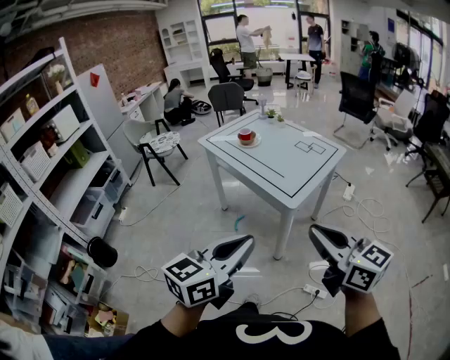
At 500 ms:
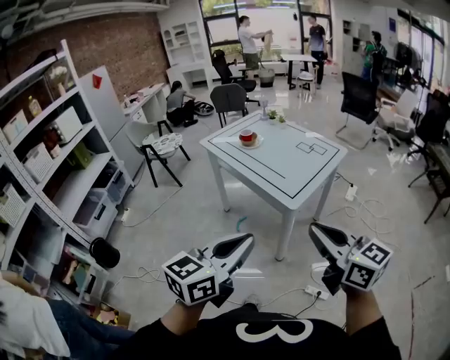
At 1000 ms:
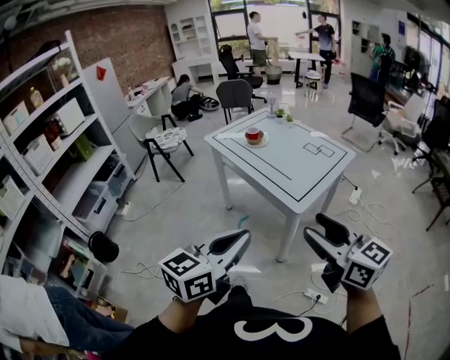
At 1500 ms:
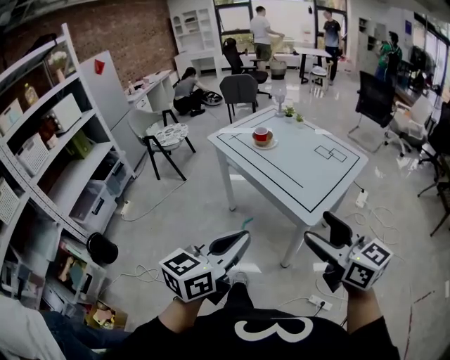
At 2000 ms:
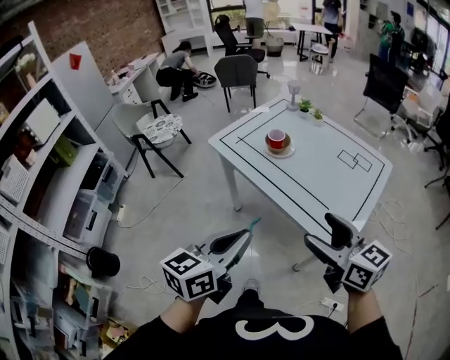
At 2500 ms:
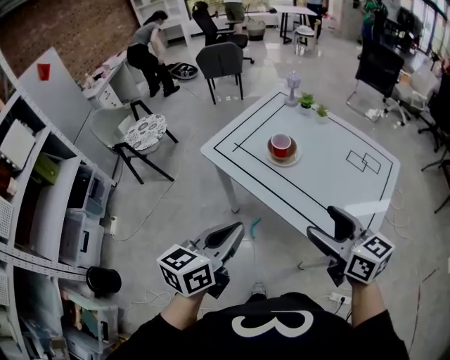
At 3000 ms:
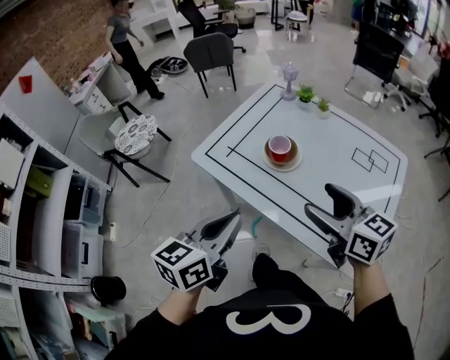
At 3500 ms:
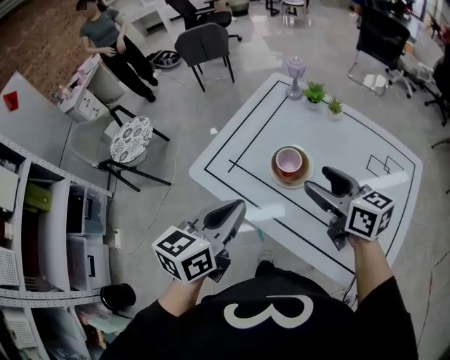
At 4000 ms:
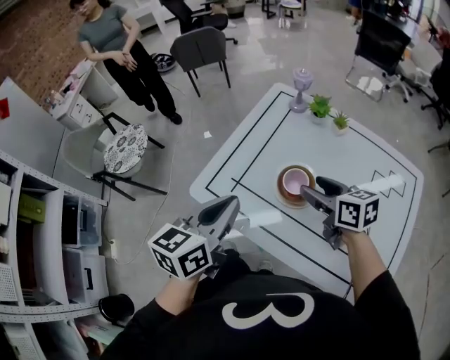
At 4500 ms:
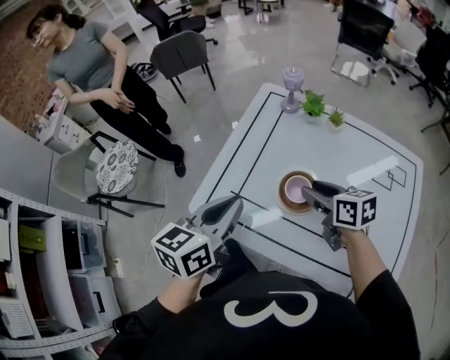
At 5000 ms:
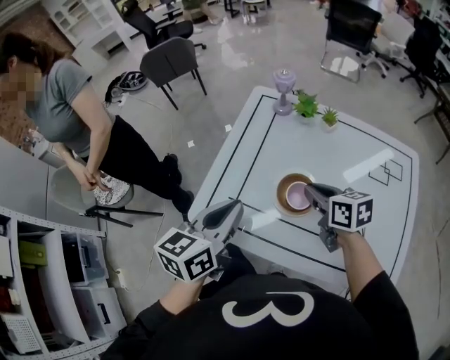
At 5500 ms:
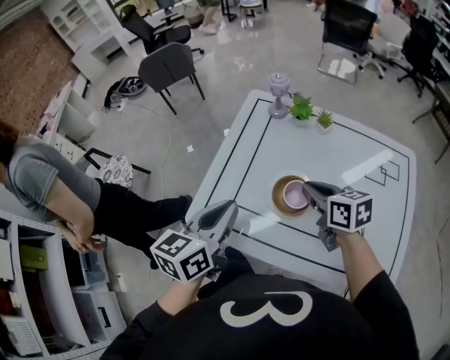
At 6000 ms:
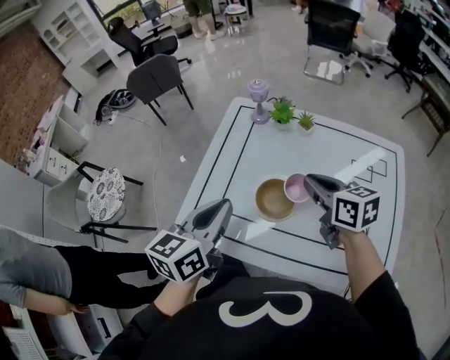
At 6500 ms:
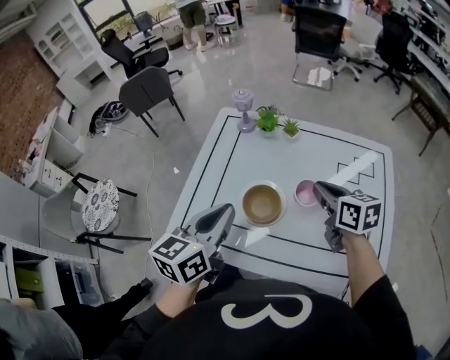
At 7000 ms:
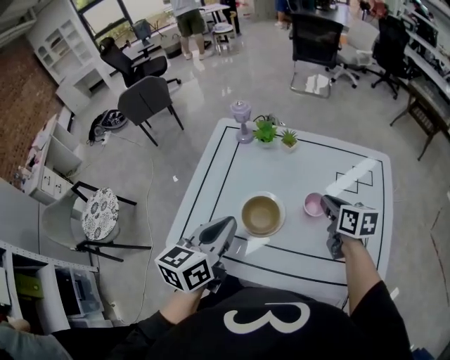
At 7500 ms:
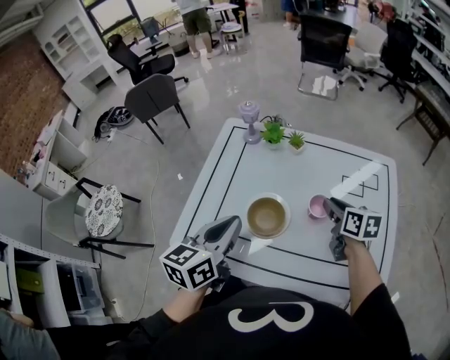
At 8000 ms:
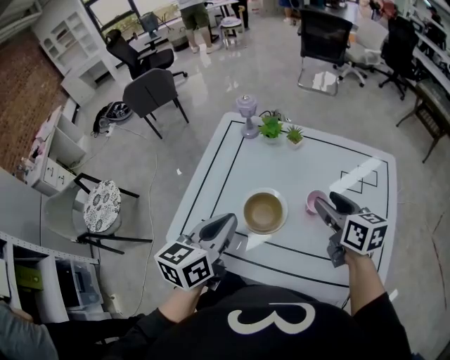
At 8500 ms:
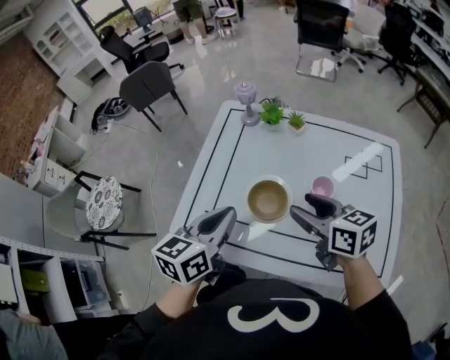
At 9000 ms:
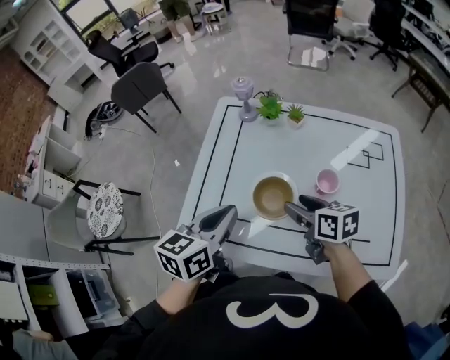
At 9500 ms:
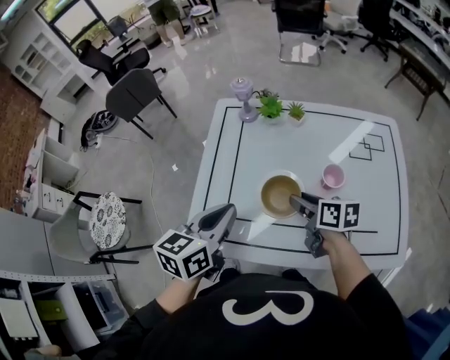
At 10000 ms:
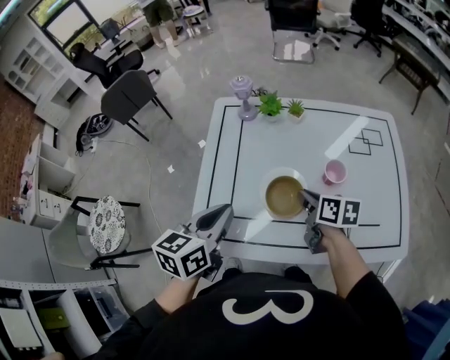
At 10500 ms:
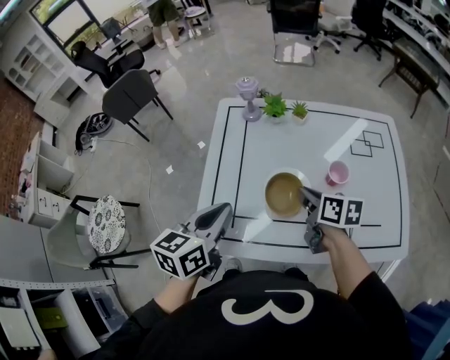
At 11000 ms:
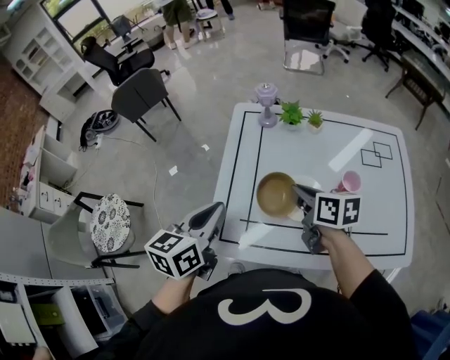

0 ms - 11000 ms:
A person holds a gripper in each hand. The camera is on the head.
0 ms - 2000 ms: The left gripper shifts about 35 cm forward and to the left; the right gripper goes some 35 cm forward, and opens.
2000 ms - 3500 ms: The grippers both shift forward by some 35 cm.
3500 ms - 5500 ms: The right gripper goes approximately 10 cm forward and downward, changes its angle by about 20 degrees, and closes, while the left gripper travels forward by about 15 cm.
5500 ms - 7500 ms: The left gripper heads to the right, covering approximately 5 cm, while the right gripper travels to the right by some 15 cm, and swivels roughly 20 degrees.
7500 ms - 9000 ms: The right gripper travels to the left and backward by roughly 15 cm, and opens up.
9000 ms - 11000 ms: The two grippers go about 10 cm to the left. The right gripper closes up.

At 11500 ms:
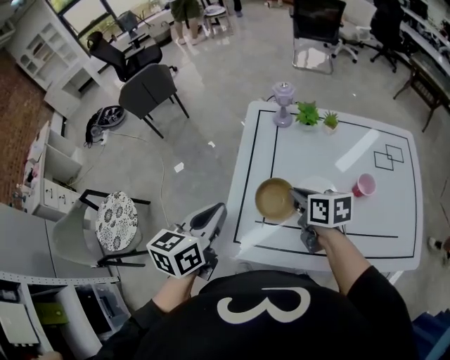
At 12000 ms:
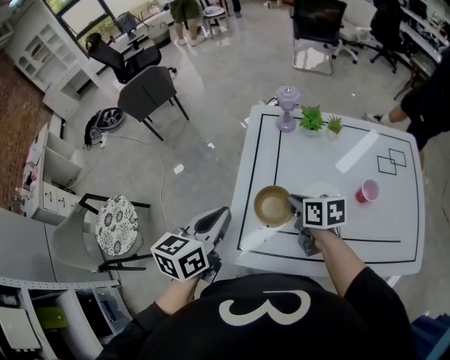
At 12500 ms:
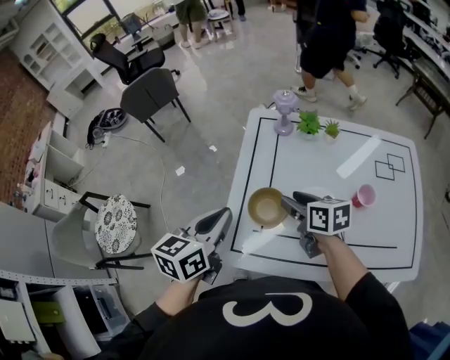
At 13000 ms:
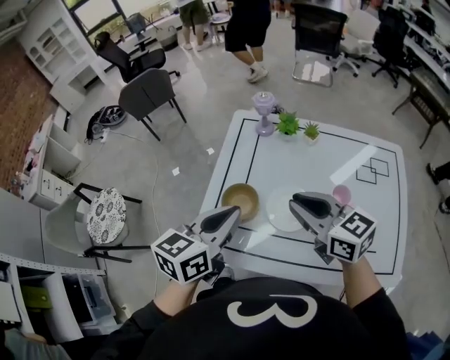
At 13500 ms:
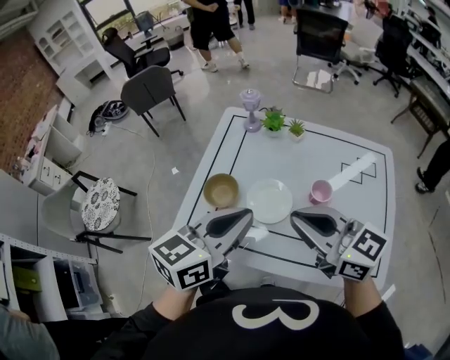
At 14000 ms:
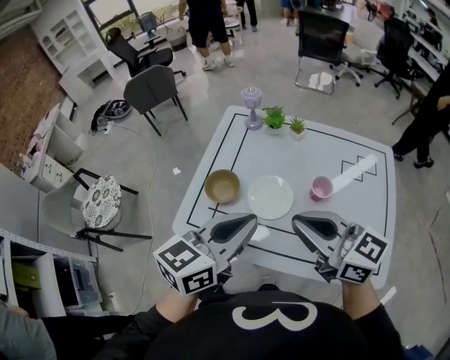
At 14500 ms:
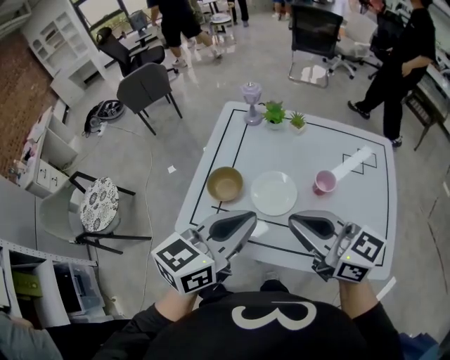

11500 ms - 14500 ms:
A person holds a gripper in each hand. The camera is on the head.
11500 ms - 13000 ms: The left gripper is displaced to the right by some 15 cm. Meanwhile the right gripper goes roughly 15 cm upward, to the right and backward, and swivels approximately 40 degrees.
13000 ms - 14500 ms: The left gripper travels backward and to the right by some 10 cm. The right gripper heads backward, covering approximately 10 cm.

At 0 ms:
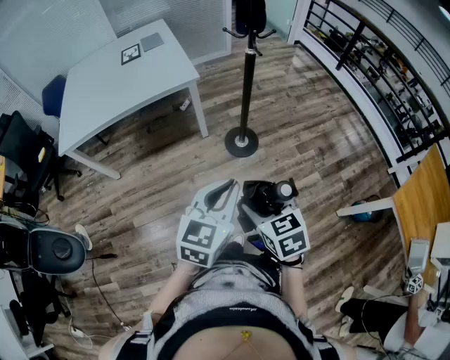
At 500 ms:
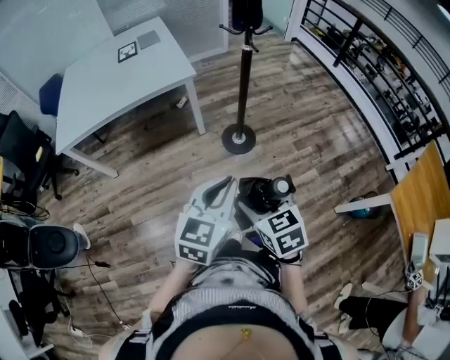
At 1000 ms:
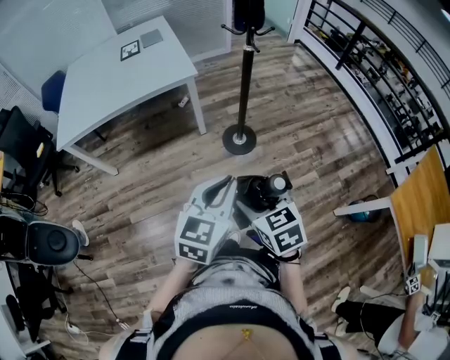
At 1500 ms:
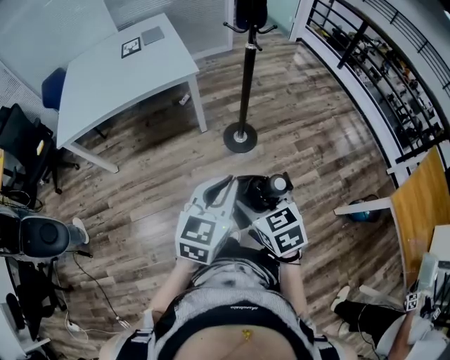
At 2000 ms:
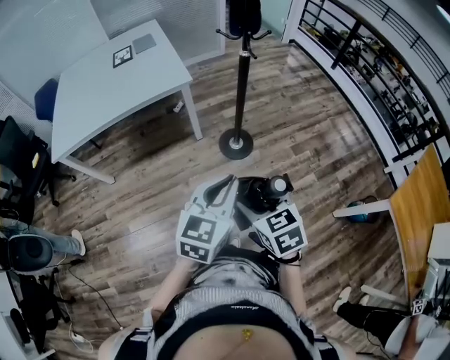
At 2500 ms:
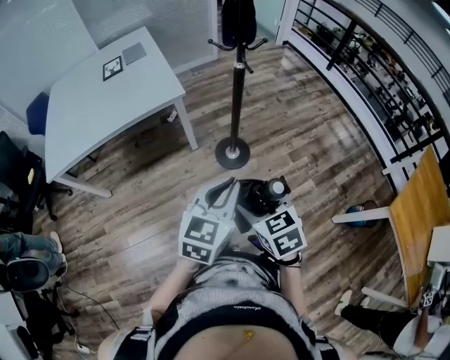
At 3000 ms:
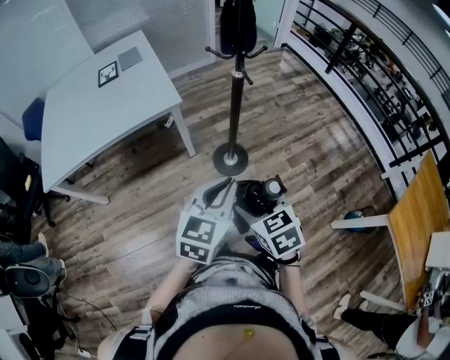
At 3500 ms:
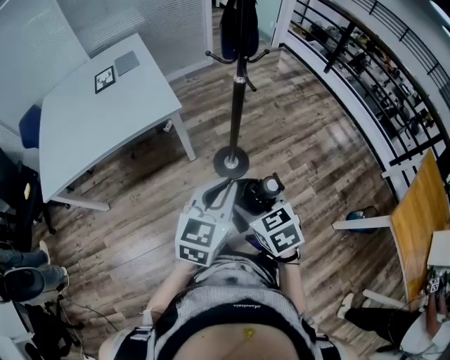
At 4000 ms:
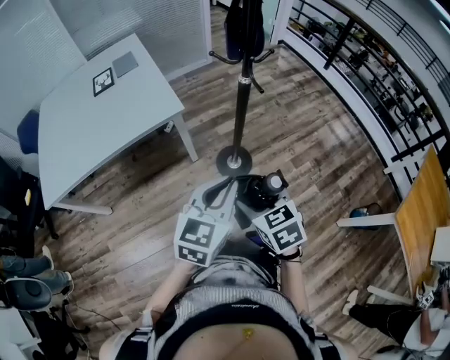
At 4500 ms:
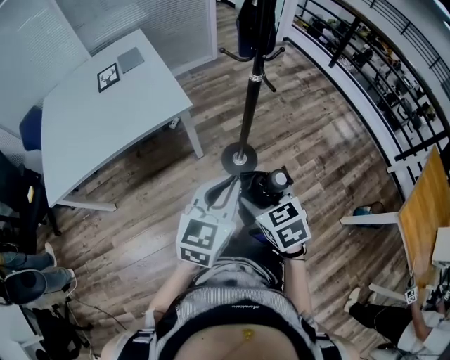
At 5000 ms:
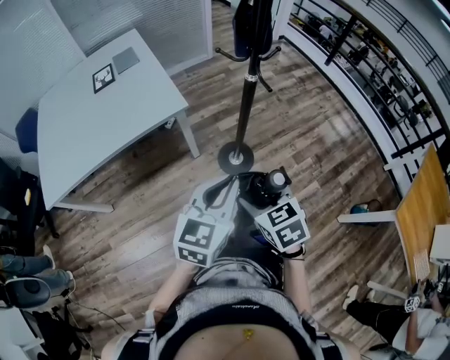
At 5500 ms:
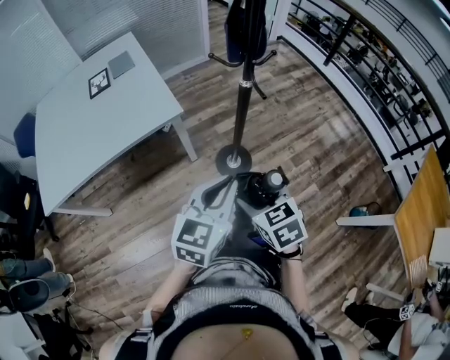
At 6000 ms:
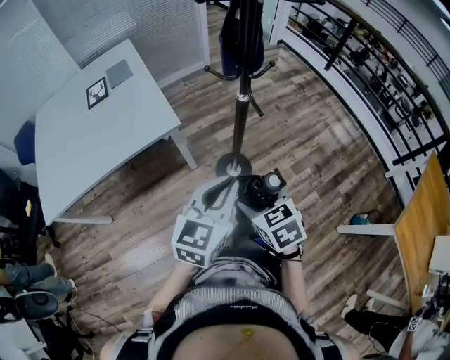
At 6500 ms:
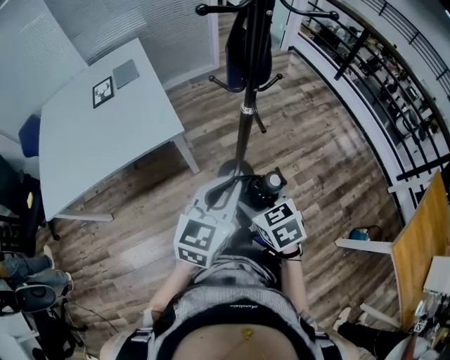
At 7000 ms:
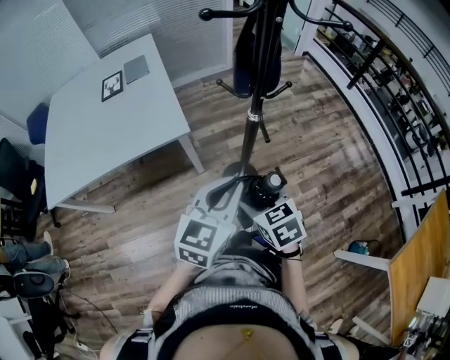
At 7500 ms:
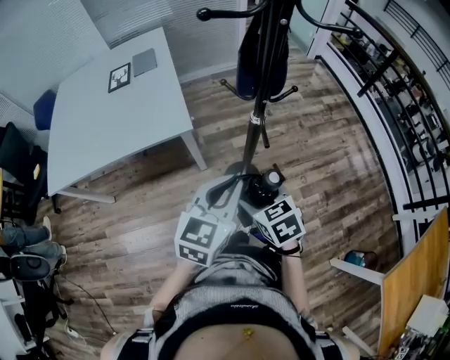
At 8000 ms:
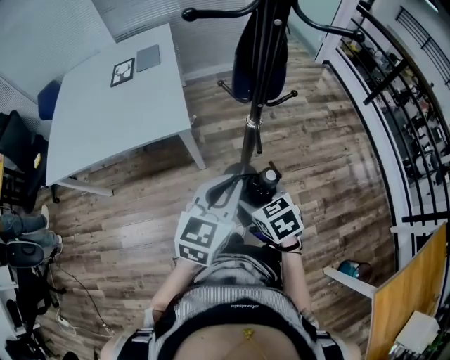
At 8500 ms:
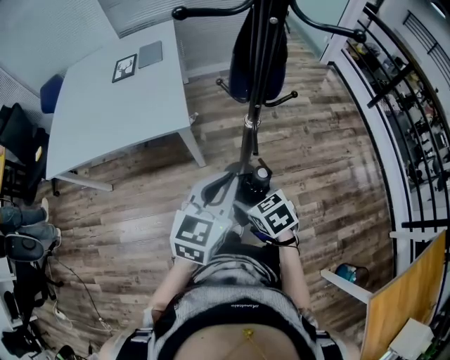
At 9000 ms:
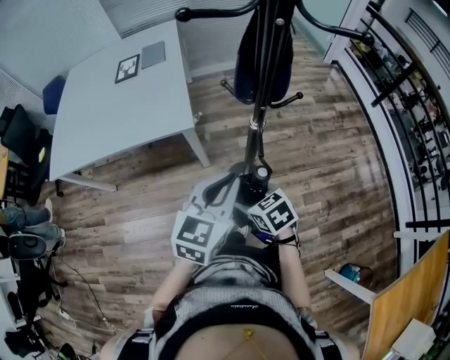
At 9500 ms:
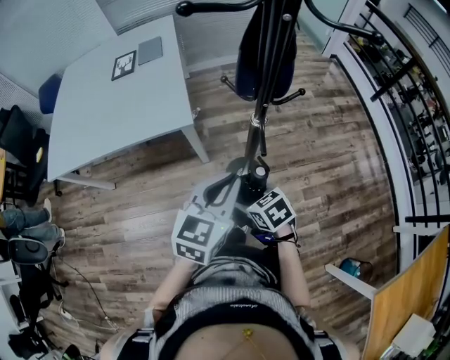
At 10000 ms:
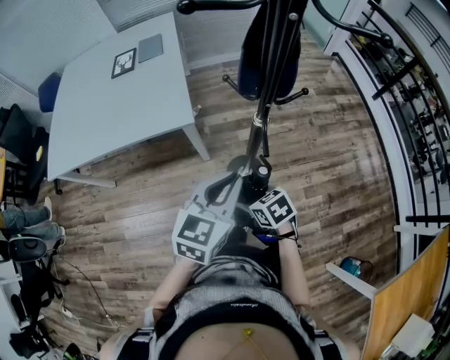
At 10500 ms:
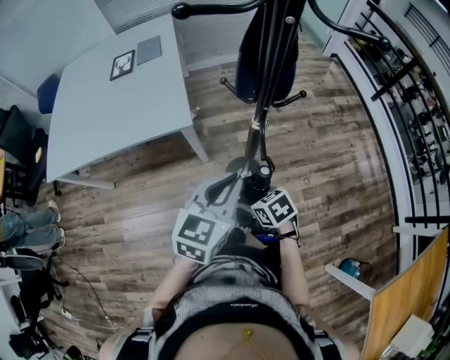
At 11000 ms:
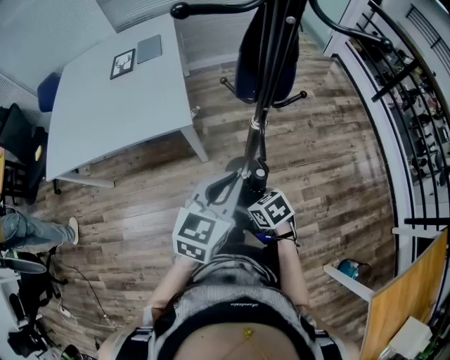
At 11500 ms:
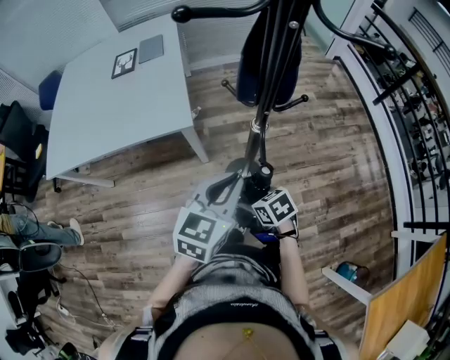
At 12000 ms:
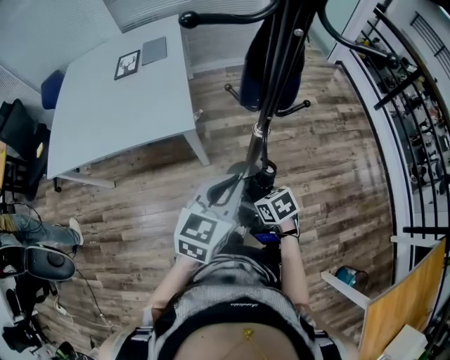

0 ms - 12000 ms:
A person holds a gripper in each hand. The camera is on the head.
0 ms - 2000 ms: The grippers move only a little.
2000 ms - 4000 ms: The two grippers go roughly 20 cm forward.
4000 ms - 6000 ms: The grippers both shift forward by about 10 cm.
6000 ms - 8000 ms: Both grippers travel together forward and to the right, about 10 cm.
8000 ms - 10000 ms: The right gripper travels downward by about 10 cm.
10000 ms - 12000 ms: The grippers stay close to where they were, moving slightly.

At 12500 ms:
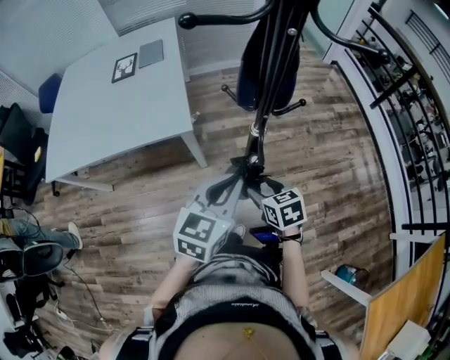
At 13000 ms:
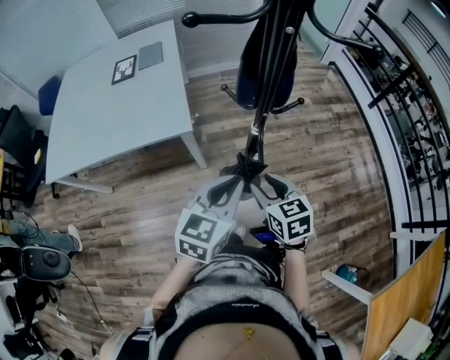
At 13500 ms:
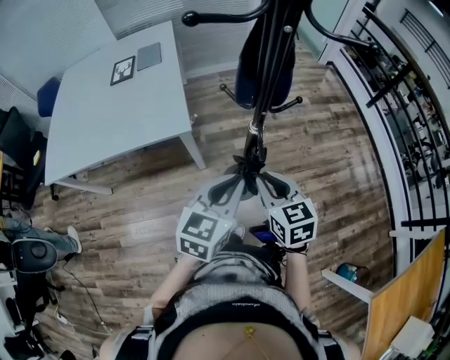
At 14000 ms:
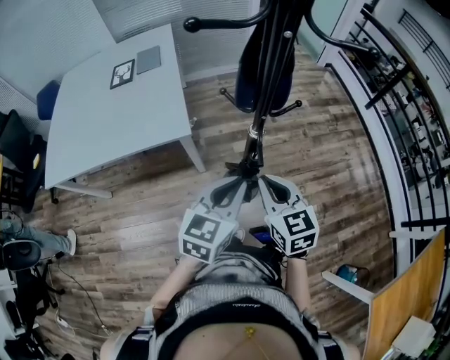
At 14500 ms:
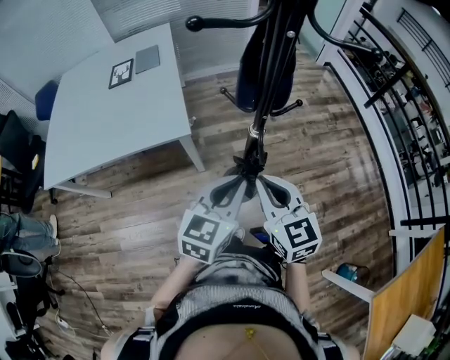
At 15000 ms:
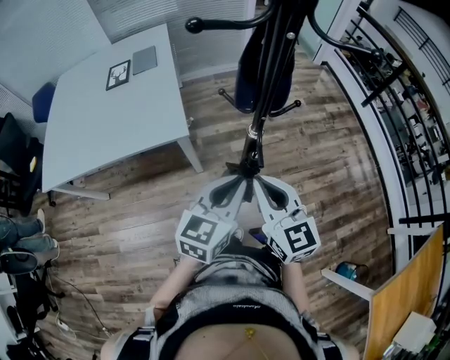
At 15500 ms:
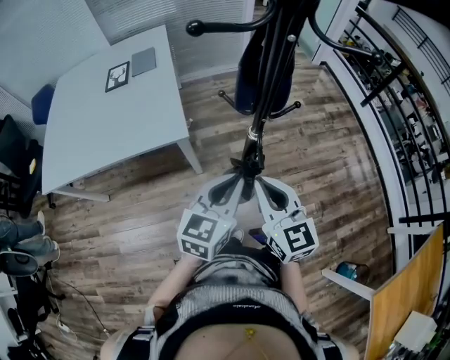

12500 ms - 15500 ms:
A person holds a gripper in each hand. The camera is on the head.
12500 ms - 14000 ms: The right gripper is displaced upward by about 15 cm, turns by approximately 30 degrees, and closes its fingers.
14000 ms - 15500 ms: The grippers stay close to where they were, moving slightly.
